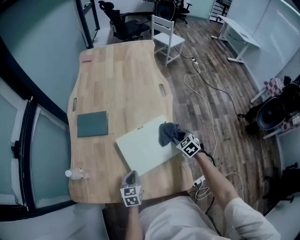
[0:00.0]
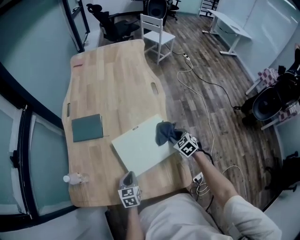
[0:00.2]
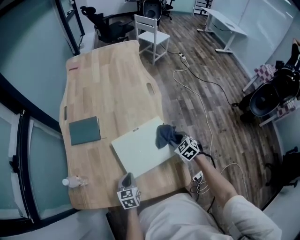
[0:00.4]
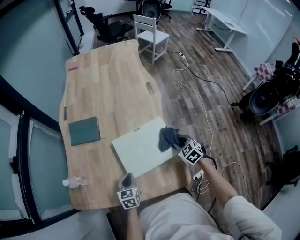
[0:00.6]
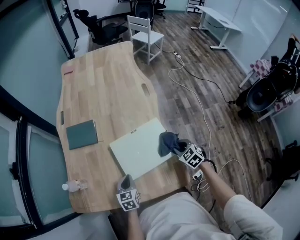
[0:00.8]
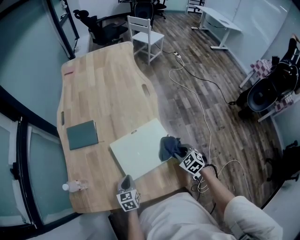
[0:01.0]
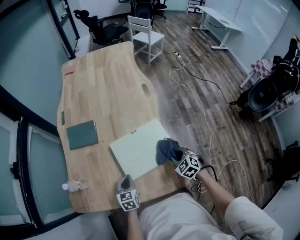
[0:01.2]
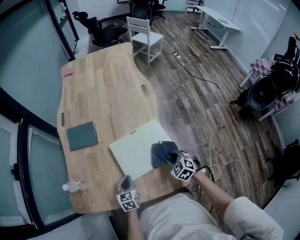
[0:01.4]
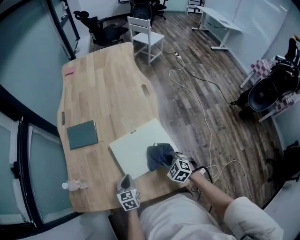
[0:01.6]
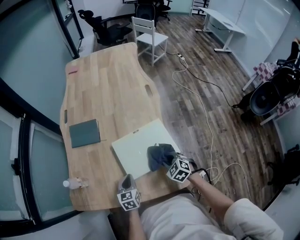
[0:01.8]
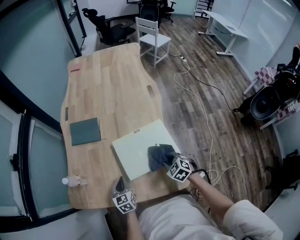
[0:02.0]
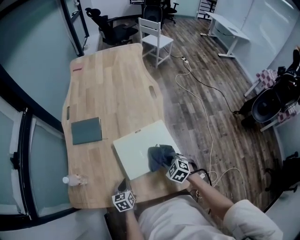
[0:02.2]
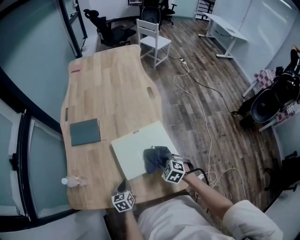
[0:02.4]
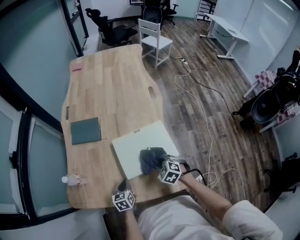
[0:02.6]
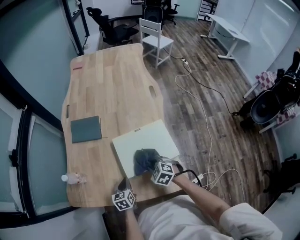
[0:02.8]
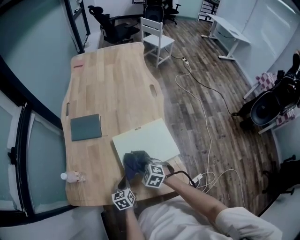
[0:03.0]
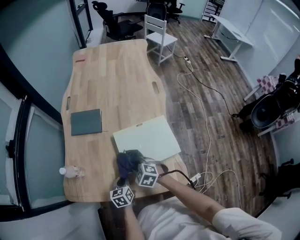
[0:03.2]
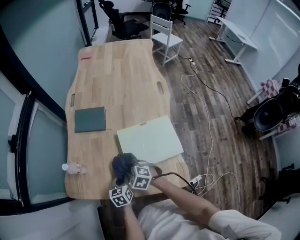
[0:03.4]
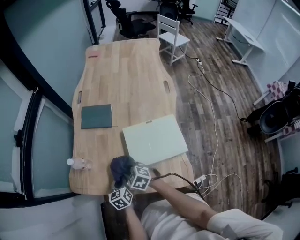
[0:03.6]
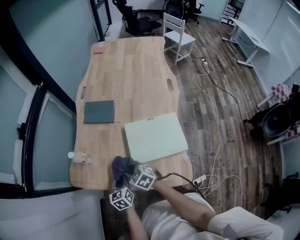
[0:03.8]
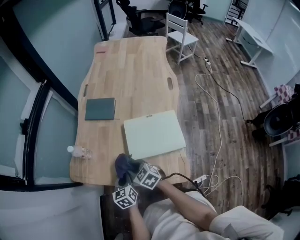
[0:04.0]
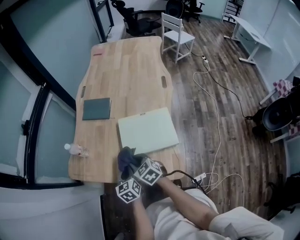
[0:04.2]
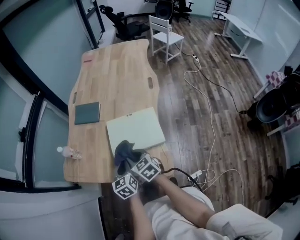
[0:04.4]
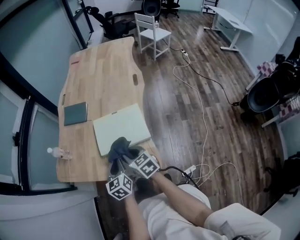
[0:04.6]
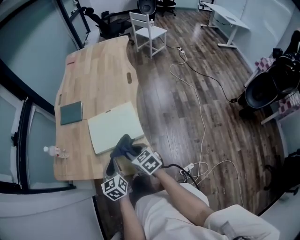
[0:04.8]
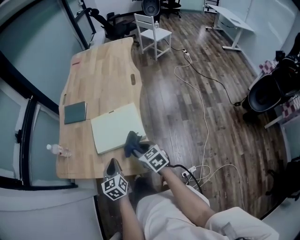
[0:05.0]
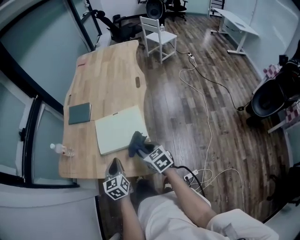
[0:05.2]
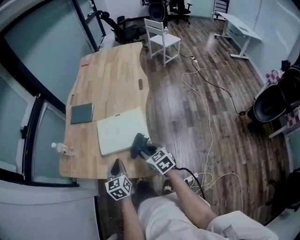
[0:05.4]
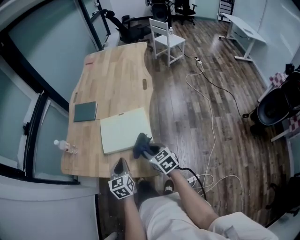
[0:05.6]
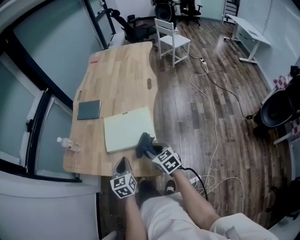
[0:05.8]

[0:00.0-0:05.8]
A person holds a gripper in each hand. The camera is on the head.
0:00.0 to 0:01.4: The right gripper heads backward, covering approximately 15 cm.
0:01.4 to 0:02.8: The left gripper moves about 5 cm. Meanwhile the right gripper moves to the left, approximately 15 cm.
0:02.8 to 0:04.4: The left gripper heads upward, backward and to the right, covering about 15 cm, and rotates roughly 20 degrees; the right gripper goes some 15 cm upward and backward, travels to the left and back again, roughly 20 cm each way, and rotates approximately 30 degrees.
0:04.4 to 0:05.8: The left gripper heads backward and to the right, covering about 10 cm. Meanwhile the right gripper moves to the right and backward, some 20 cm.

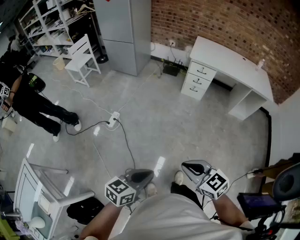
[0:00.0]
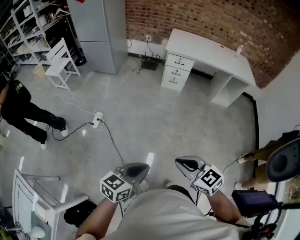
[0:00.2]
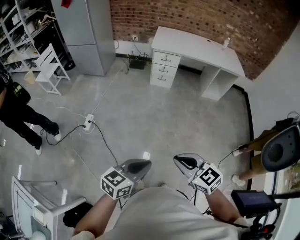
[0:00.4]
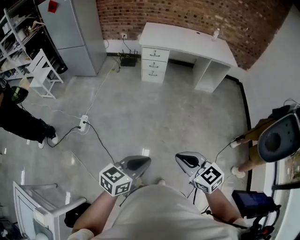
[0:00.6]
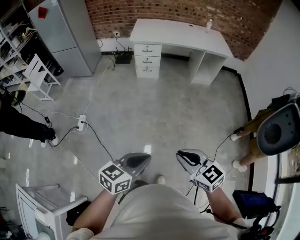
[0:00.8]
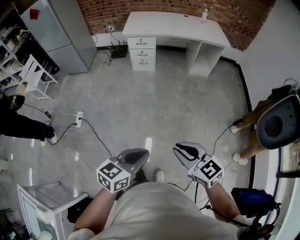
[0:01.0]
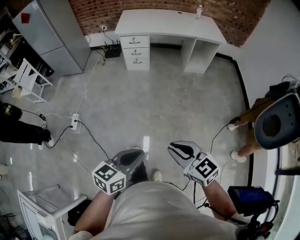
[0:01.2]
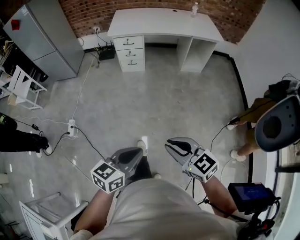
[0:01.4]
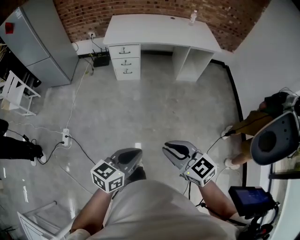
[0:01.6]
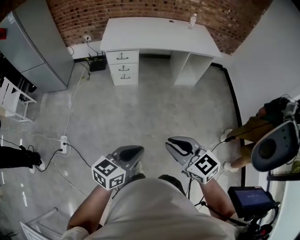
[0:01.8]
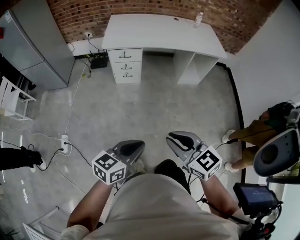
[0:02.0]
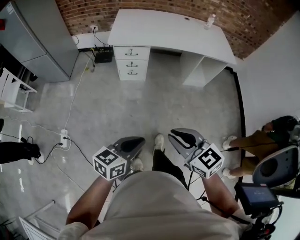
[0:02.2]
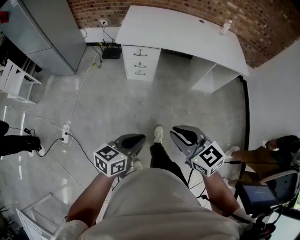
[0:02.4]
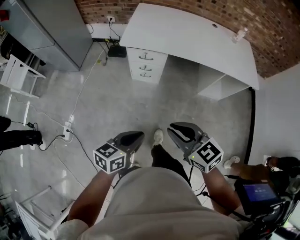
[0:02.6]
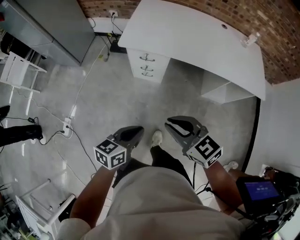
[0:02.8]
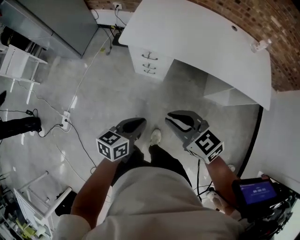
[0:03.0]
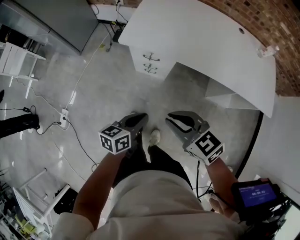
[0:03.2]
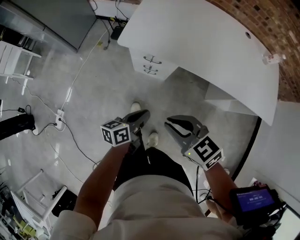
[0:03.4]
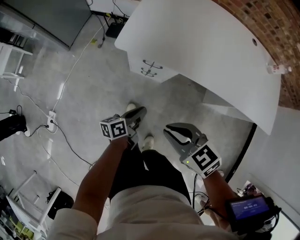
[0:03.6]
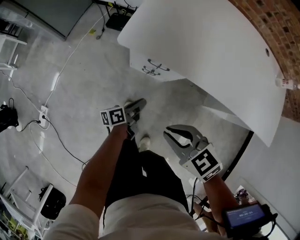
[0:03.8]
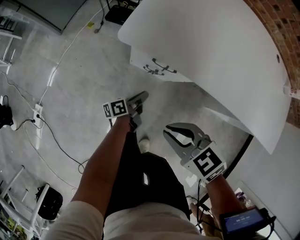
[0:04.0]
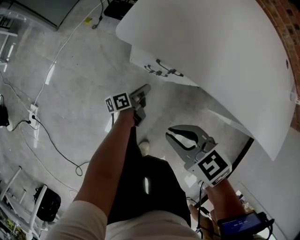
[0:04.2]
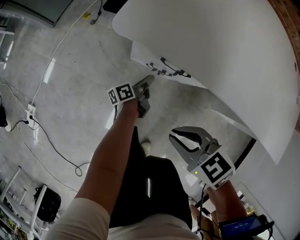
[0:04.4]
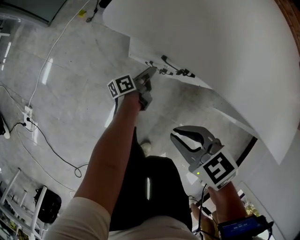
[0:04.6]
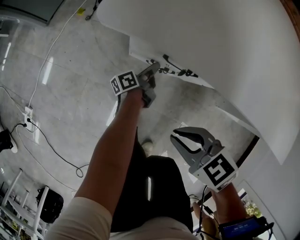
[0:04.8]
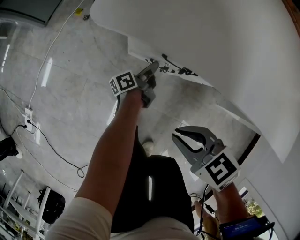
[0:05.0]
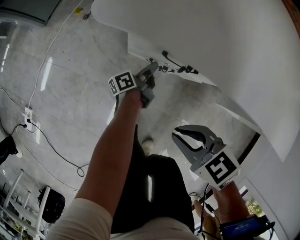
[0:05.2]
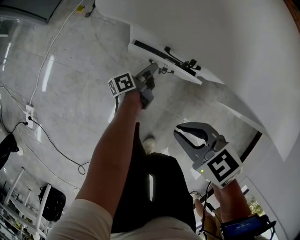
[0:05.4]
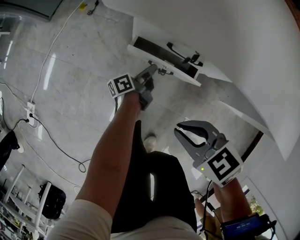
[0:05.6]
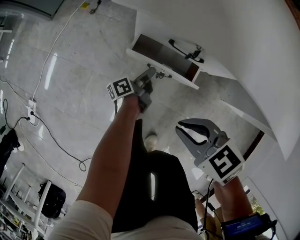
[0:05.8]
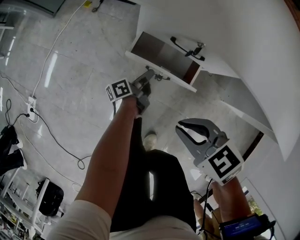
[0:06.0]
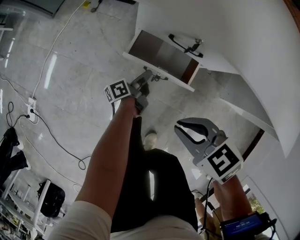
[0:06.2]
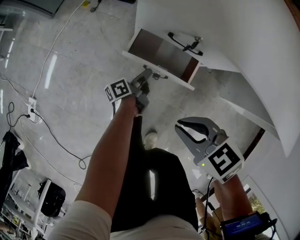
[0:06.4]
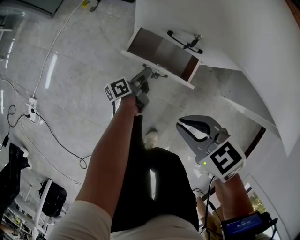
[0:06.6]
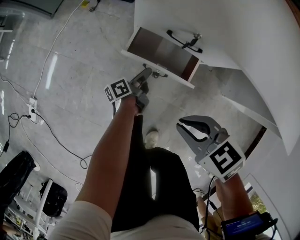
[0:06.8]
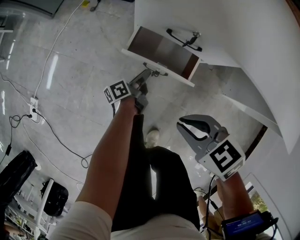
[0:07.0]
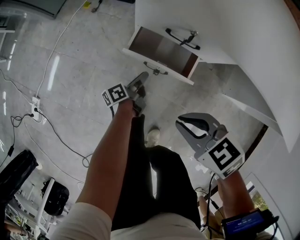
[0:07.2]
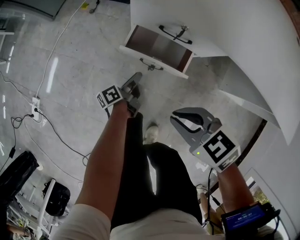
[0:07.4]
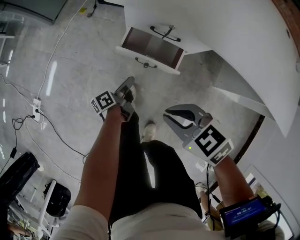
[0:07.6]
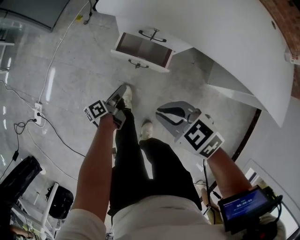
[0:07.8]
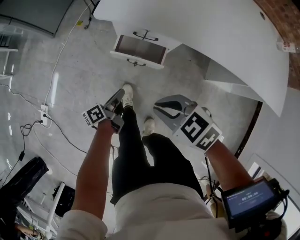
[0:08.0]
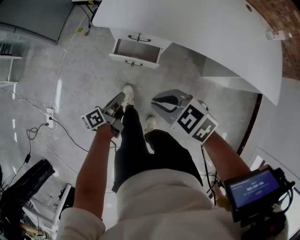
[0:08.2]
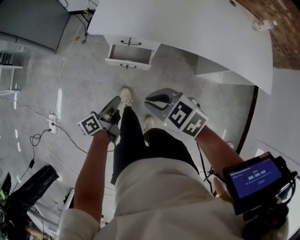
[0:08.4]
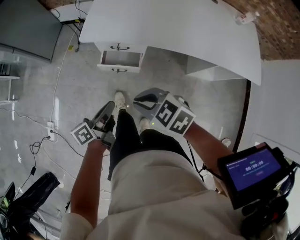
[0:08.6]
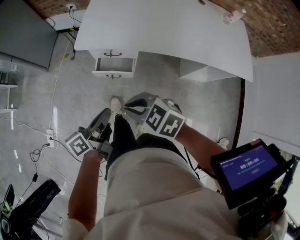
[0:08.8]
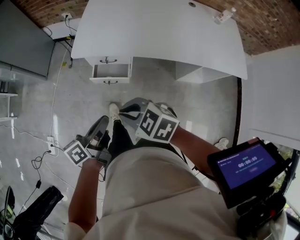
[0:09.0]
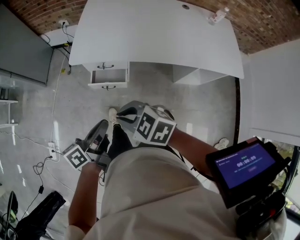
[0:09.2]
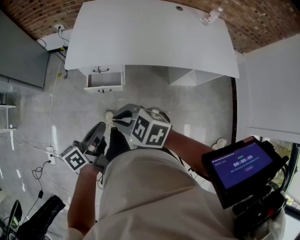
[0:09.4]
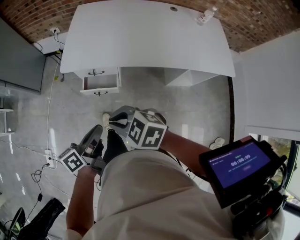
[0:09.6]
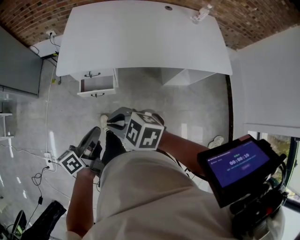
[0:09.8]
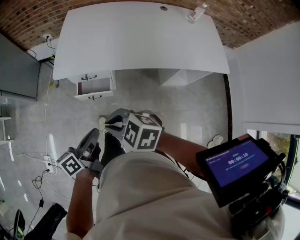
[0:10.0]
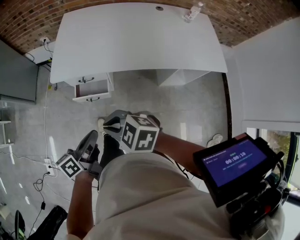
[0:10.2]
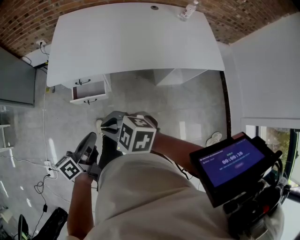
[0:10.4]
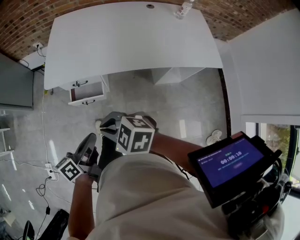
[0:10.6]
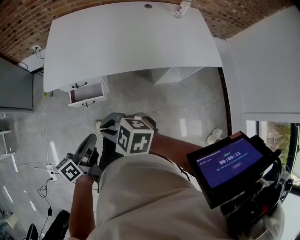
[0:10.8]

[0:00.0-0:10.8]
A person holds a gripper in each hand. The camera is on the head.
0:00.0 to 0:01.6: The two grippers go some 30 cm to the right and forward. The right gripper changes its angle by roughly 20 degrees.
0:01.6 to 0:03.0: The two grippers travel together, forward, approximately 60 cm. The left gripper turns by roughly 20 degrees; the right gripper changes its angle by some 20 degrees.
0:03.0 to 0:04.6: The right gripper travels downward and forward by roughly 40 cm, and changes its angle by roughly 30 degrees. Meanwhile the left gripper is displaced downward and forward by about 70 cm, and rolls counterclockwise, seen from behind, by some 60 degrees.
0:04.6 to 0:06.2: The left gripper shifts approximately 10 cm backward and to the left.
0:06.2 to 0:07.8: The right gripper moves upward and backward, approximately 10 cm, while the left gripper goes approximately 20 cm upward, backward and to the left.
0:07.8 to 0:09.2: The left gripper moves upward, about 40 cm, and rotates roughly 30 degrees, while the right gripper heads upward, covering roughly 25 cm.
0:09.2 to 0:10.8: The grippers make only small movements.

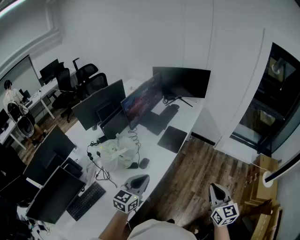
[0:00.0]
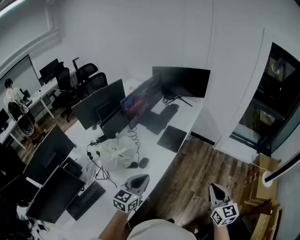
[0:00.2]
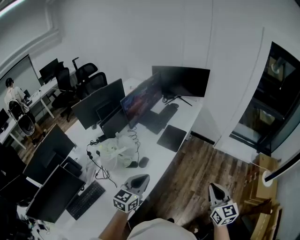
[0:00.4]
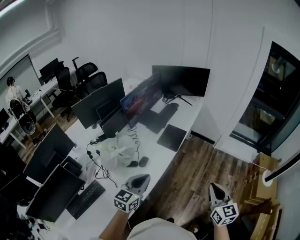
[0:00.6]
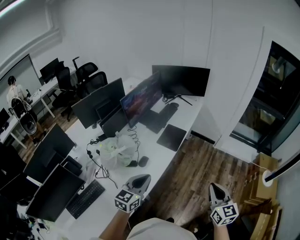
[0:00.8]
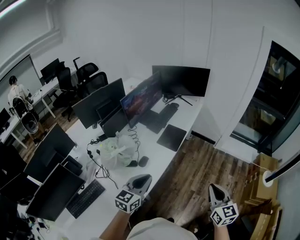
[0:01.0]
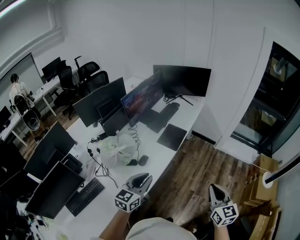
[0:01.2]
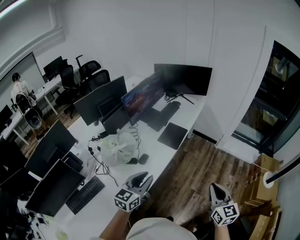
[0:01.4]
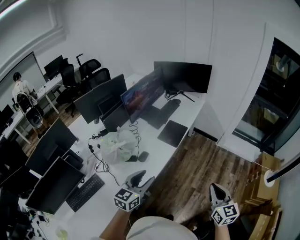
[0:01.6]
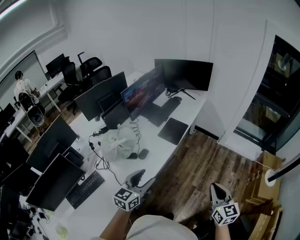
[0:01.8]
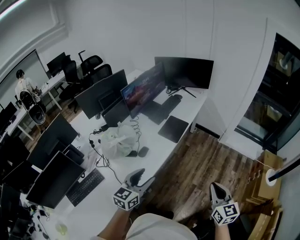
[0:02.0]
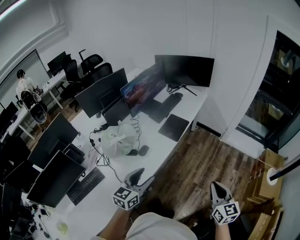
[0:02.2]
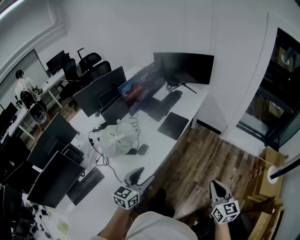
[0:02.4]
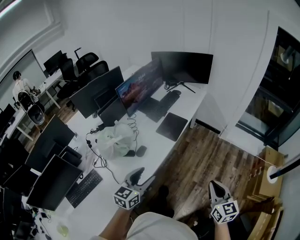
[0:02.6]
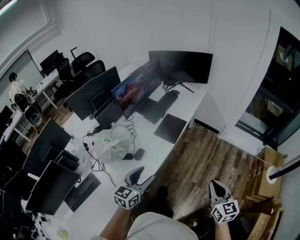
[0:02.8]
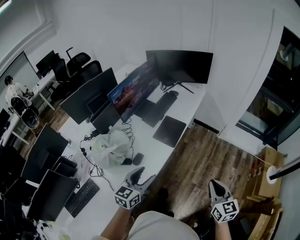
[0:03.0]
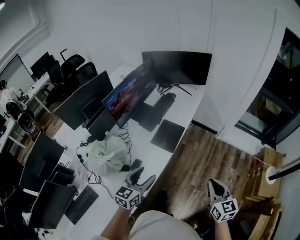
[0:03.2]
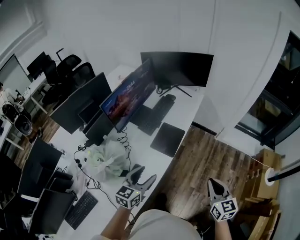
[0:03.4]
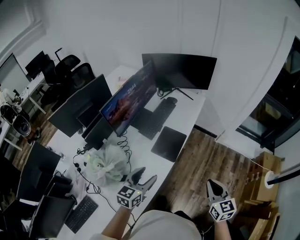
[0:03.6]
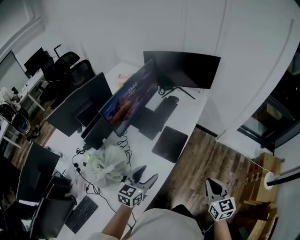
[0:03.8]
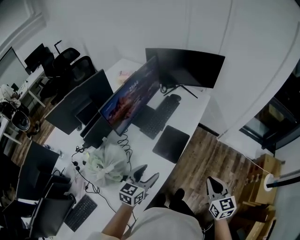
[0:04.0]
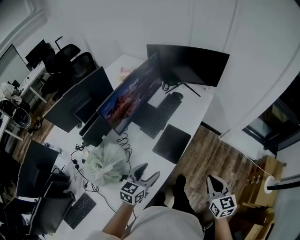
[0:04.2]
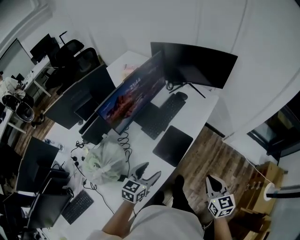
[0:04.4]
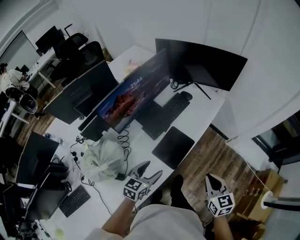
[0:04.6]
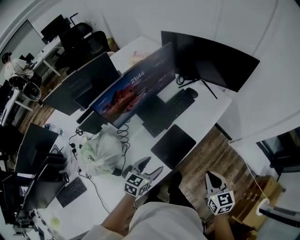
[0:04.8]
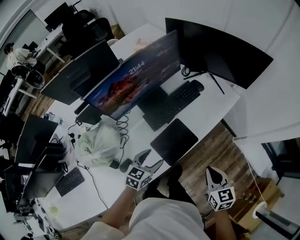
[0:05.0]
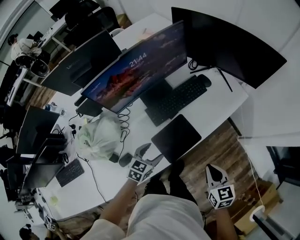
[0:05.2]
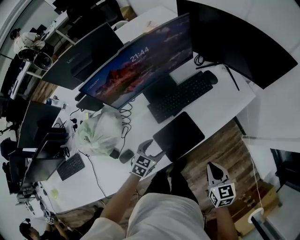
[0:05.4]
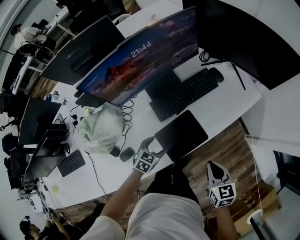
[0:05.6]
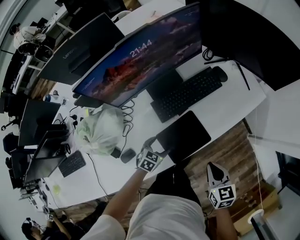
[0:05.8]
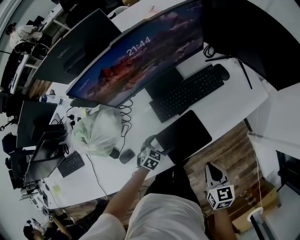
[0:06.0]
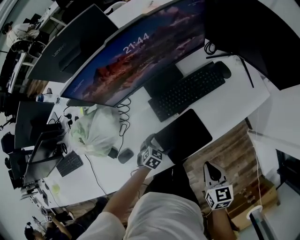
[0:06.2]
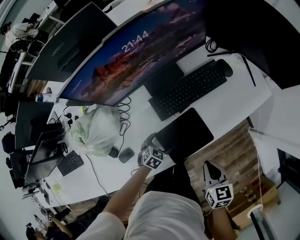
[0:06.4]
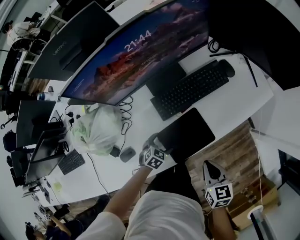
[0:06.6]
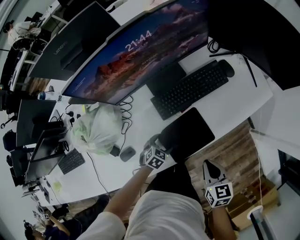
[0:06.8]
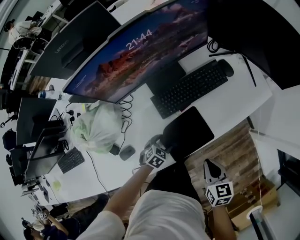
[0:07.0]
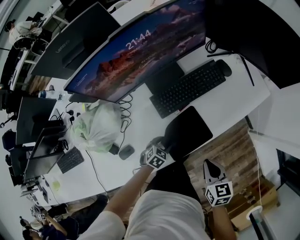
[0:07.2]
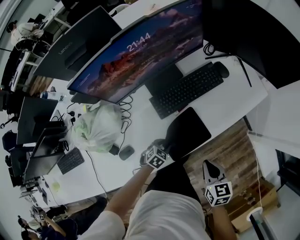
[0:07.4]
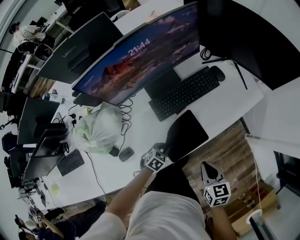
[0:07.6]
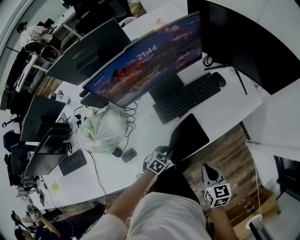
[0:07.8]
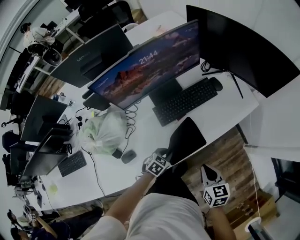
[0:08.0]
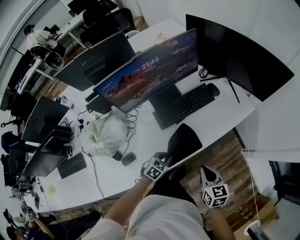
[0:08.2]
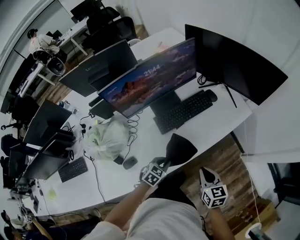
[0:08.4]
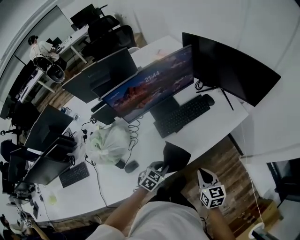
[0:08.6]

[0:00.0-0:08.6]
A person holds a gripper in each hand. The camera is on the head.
0:00.0 to 0:01.4: The grippers stay close to where they were, moving slightly.
0:01.4 to 0:02.8: Both grippers travel together forward, roughly 5 cm.
0:02.8 to 0:04.4: The two grippers go roughly 30 cm forward.
0:04.4 to 0:05.8: The right gripper heads forward and downward, covering approximately 25 cm, and changes its angle by about 30 degrees. The left gripper shifts approximately 30 cm downward and forward, and tilts its fingers roughly 30 degrees downward.
0:05.8 to 0:07.2: The left gripper is displaced downward by approximately 5 cm, and closes.
0:07.2 to 0:08.6: The left gripper is displaced upward by approximately 15 cm, and closes its fingers; the right gripper is displaced upward by about 10 cm.
